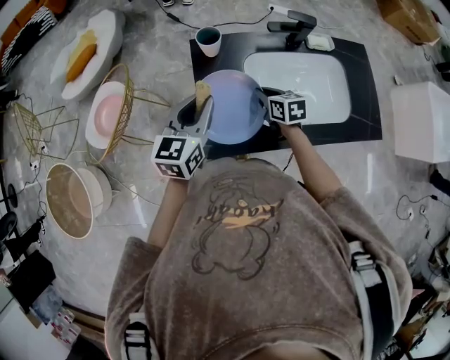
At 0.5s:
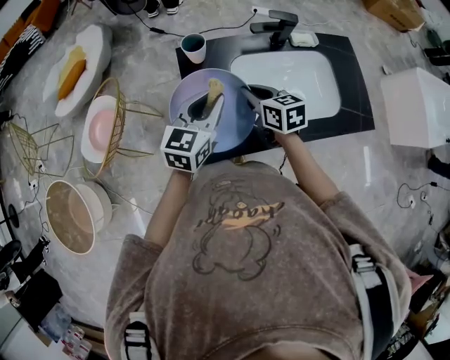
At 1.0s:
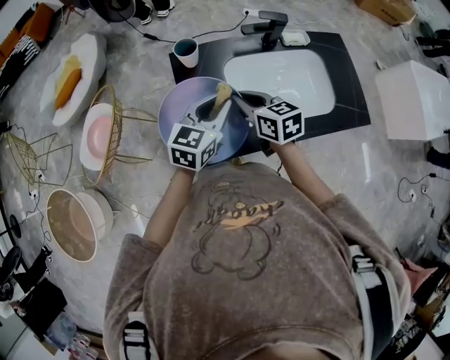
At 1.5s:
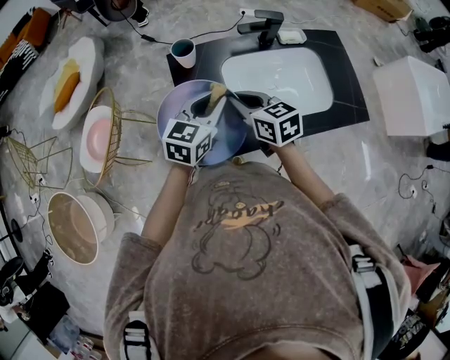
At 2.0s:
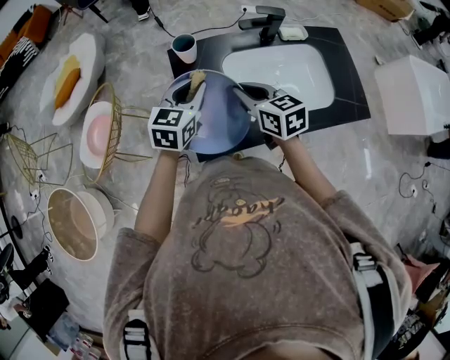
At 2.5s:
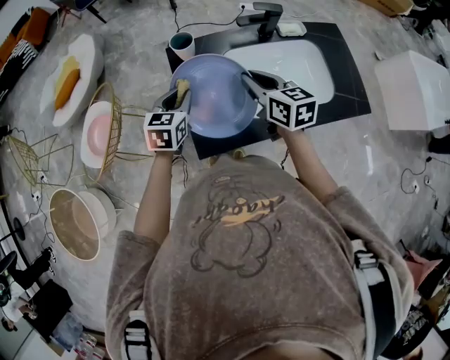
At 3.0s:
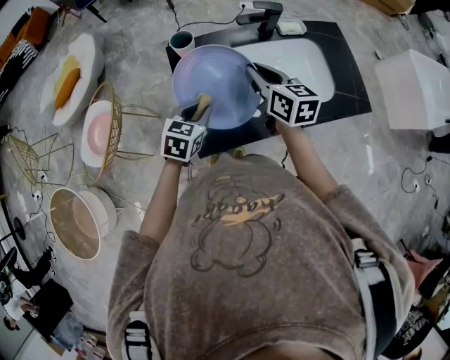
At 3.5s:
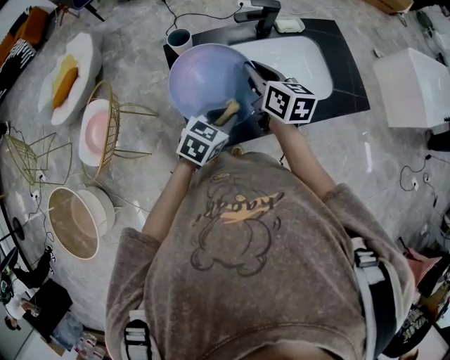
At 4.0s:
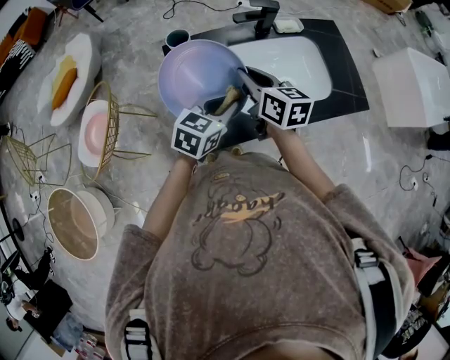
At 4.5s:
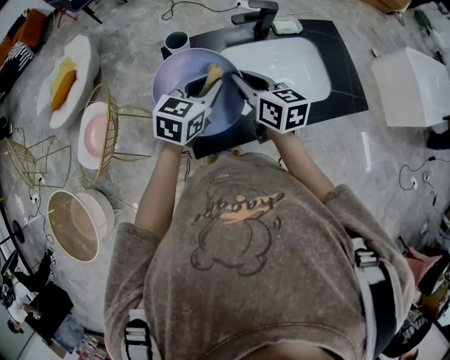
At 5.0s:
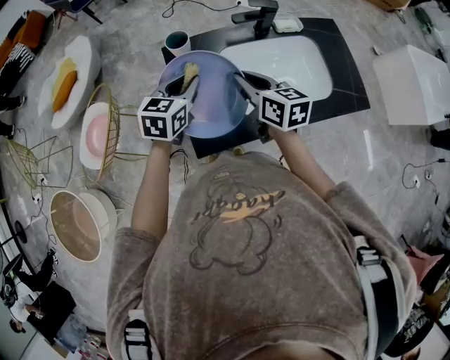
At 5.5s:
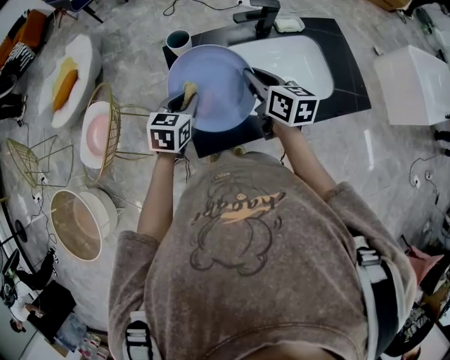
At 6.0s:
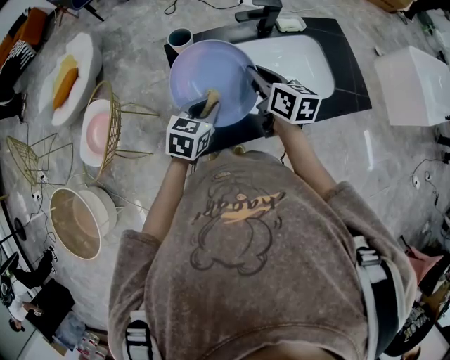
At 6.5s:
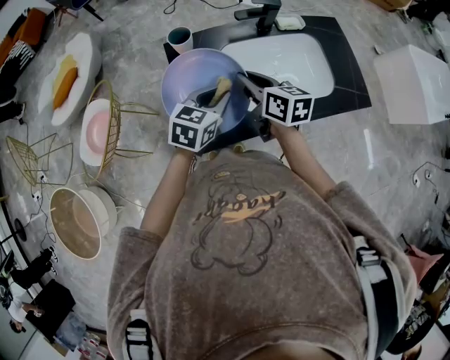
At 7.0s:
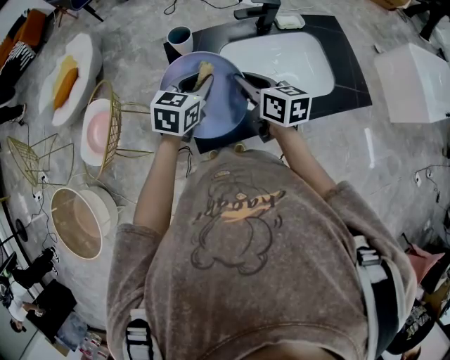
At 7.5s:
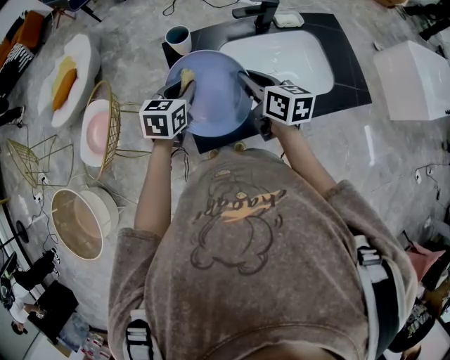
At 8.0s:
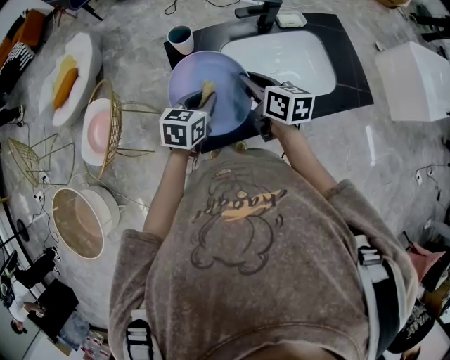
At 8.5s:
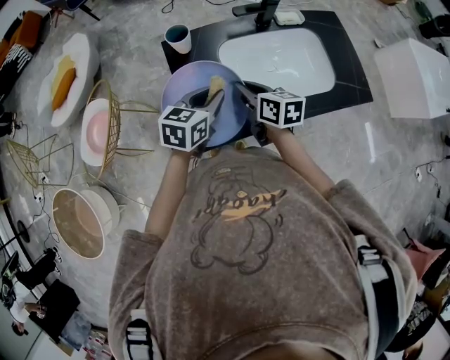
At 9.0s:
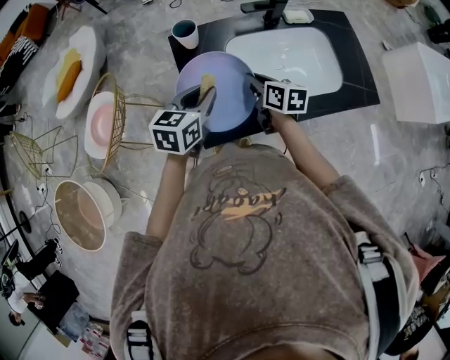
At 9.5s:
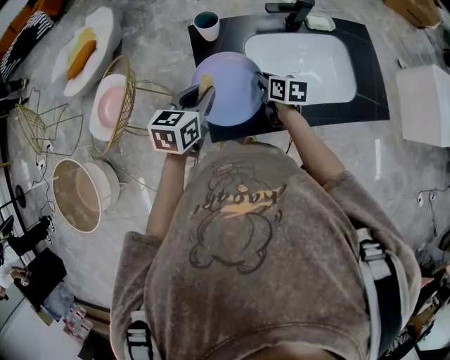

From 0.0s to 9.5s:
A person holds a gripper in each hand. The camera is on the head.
From 0.0s to 2.0s: The right gripper is displaced upward by about 15 cm.
From 2.0s to 4.0s: The left gripper goes roughly 10 cm to the right and backward, and turns by approximately 20 degrees.
From 4.0s to 5.5s: The left gripper heads to the left, covering some 10 cm.
From 5.5s to 7.5s: The left gripper travels to the right and back again, about 10 cm each way.
From 7.5s to 9.5s: The left gripper moves backward, approximately 5 cm, and moves about 5 cm to the right and comes back; the right gripper goes approximately 15 cm downward.

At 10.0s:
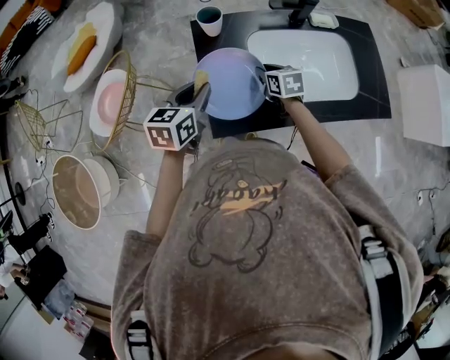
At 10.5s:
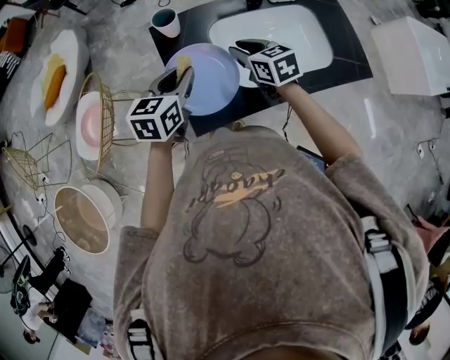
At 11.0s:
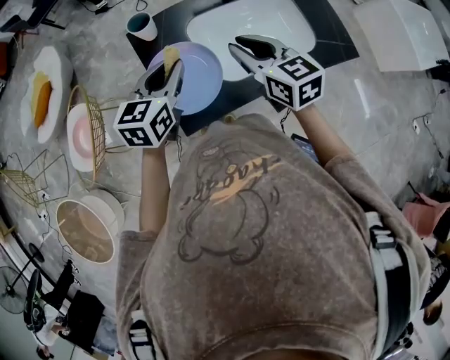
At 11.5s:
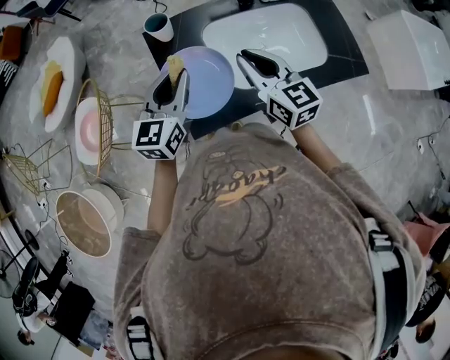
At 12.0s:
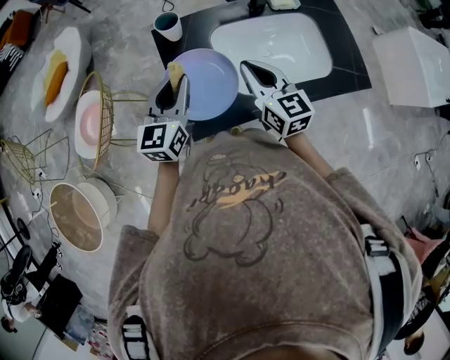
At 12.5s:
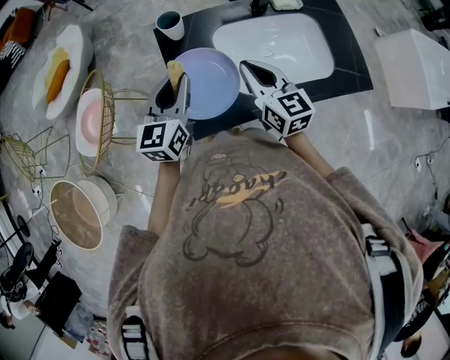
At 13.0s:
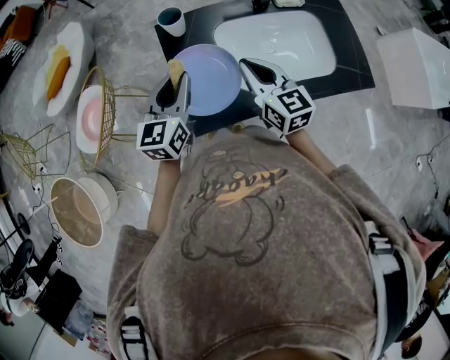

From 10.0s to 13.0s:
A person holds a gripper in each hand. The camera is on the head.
From 10.0s to 11.5s: The right gripper moves upward, about 20 cm, and tips its fingers upward by about 30 degrees. Meanwhile the left gripper moves upward and to the right, roughly 10 cm, and rotates approximately 20 degrees.
From 11.5s to 13.0s: The grippers make only small movements.

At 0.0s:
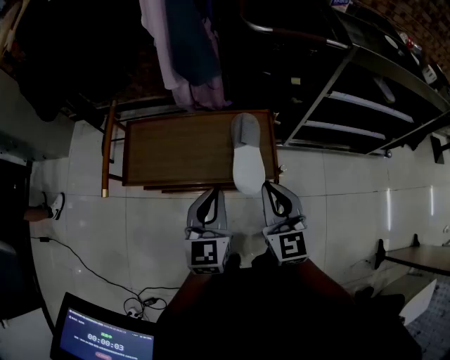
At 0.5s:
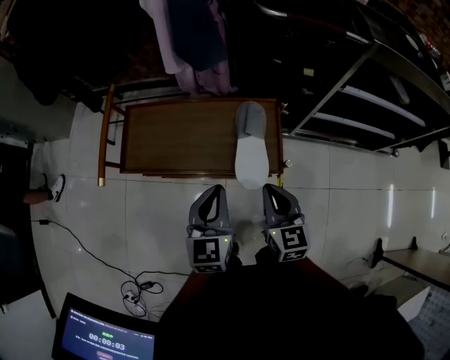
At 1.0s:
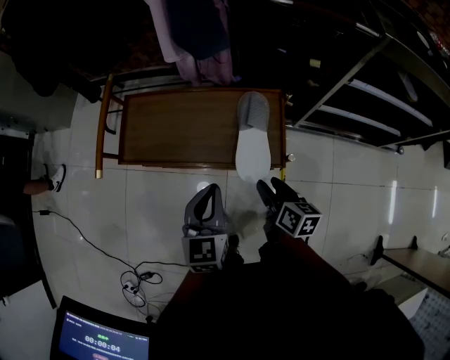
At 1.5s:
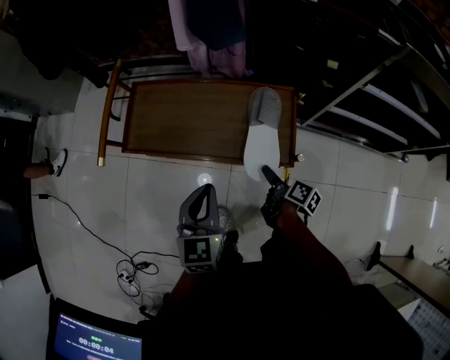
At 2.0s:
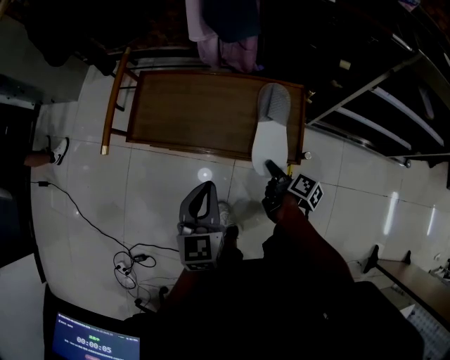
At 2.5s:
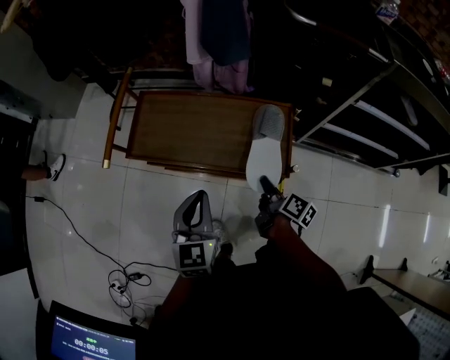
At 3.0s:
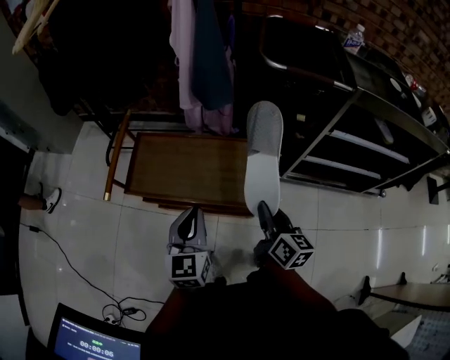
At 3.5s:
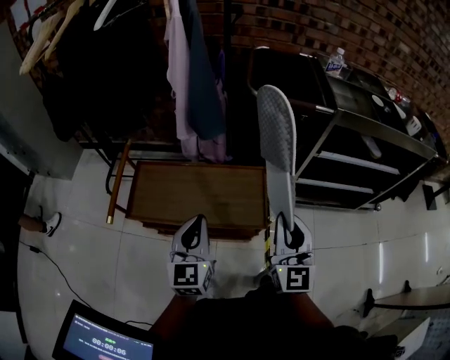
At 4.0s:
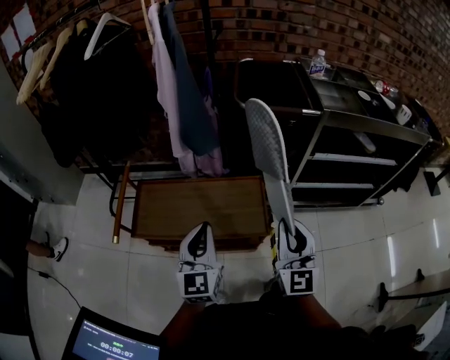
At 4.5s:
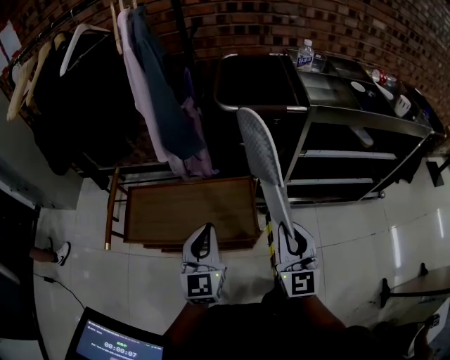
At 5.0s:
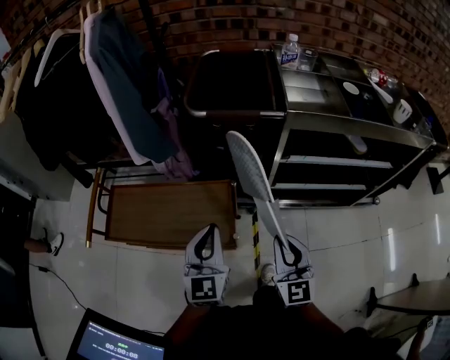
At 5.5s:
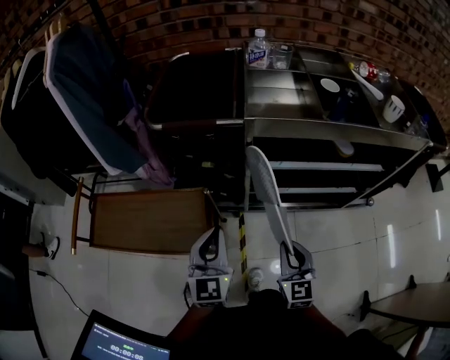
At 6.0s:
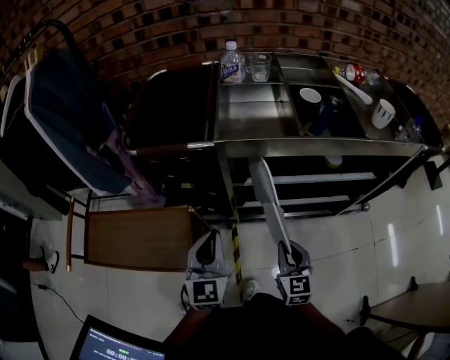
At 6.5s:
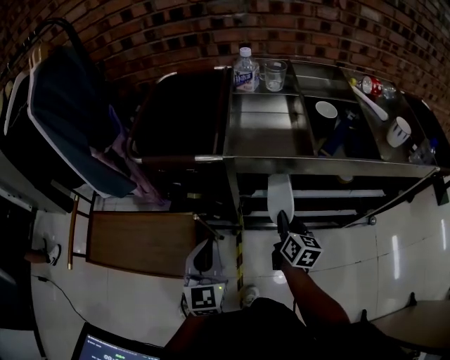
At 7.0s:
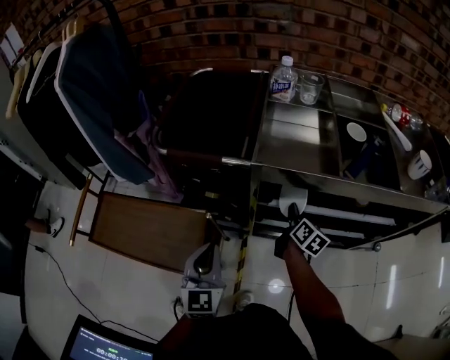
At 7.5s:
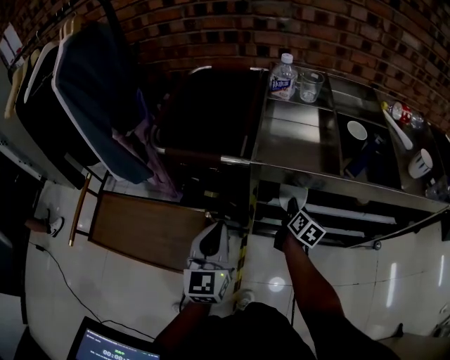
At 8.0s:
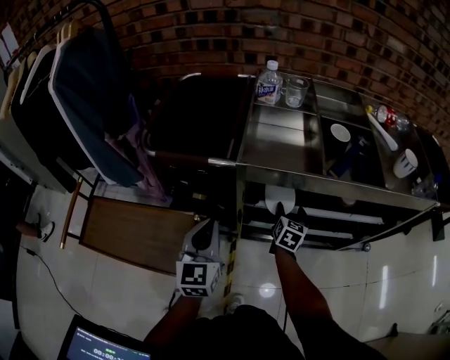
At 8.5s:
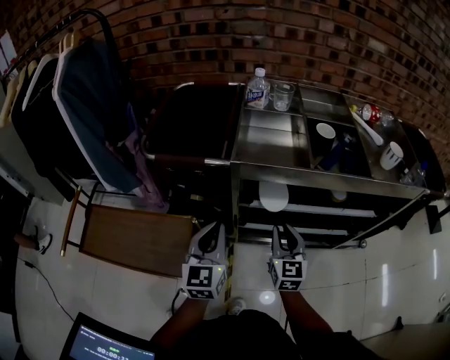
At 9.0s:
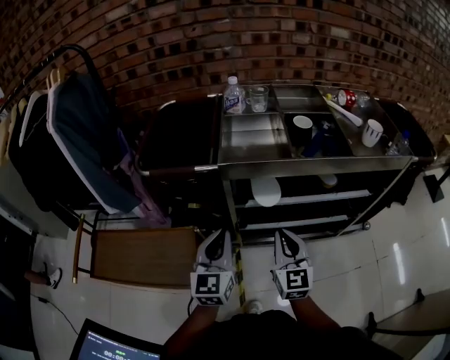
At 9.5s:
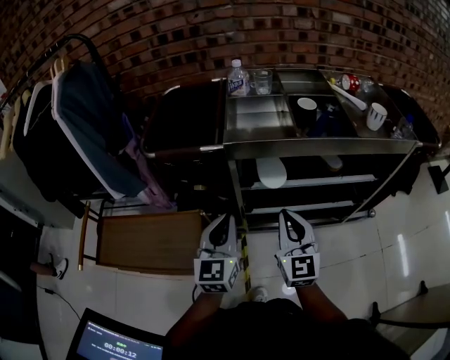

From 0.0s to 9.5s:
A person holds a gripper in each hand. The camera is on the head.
From 0.0s to 2.0s: The right gripper shifts about 25 cm downward, rolls clockwise, seen from behind, by about 80 degrees, and opens its fingers, while the left gripper shifts roughly 10 cm downward and to the left.
From 2.0s to 4.0s: The left gripper heads upward, covering roughly 15 cm, and turns by about 20 degrees, while the right gripper travels upward by approximately 35 cm, rolls counterclockwise, seen from behind, by some 80 degrees, and closes up.
From 4.0s to 5.5s: The right gripper goes approximately 35 cm to the right and downward, and turns by about 20 degrees; the left gripper heads to the right, covering about 30 cm.
From 5.5s to 7.5s: The right gripper heads forward, covering roughly 30 cm, and twists some 40 degrees clockwise, seen from behind. Meanwhile the left gripper goes about 10 cm forward.
From 7.5s to 9.5s: The right gripper goes about 30 cm upward and backward, twists approximately 40 degrees counterclockwise, seen from behind, and opens, then closes once more. Meanwhile the left gripper heads backward and to the right, covering approximately 10 cm.

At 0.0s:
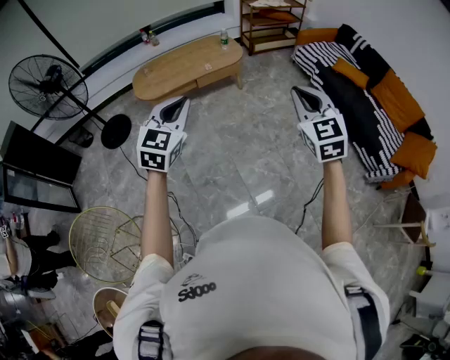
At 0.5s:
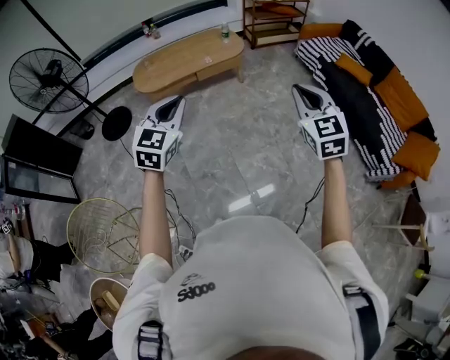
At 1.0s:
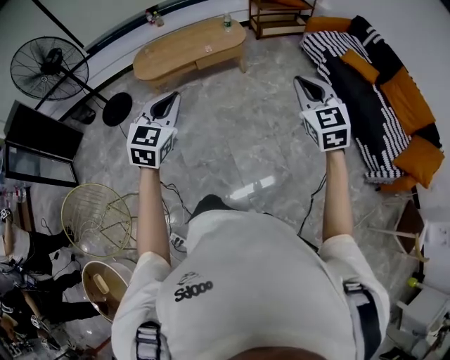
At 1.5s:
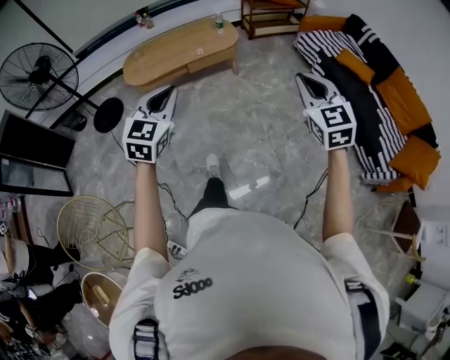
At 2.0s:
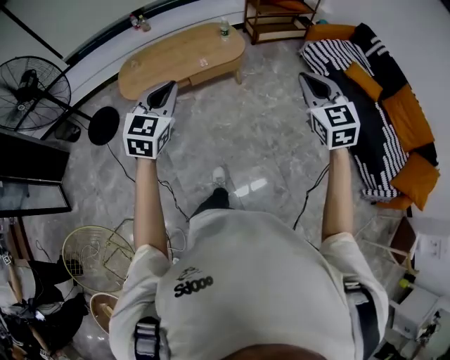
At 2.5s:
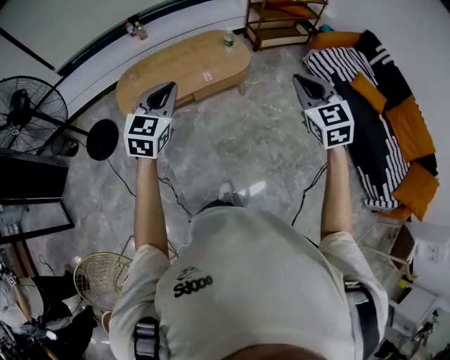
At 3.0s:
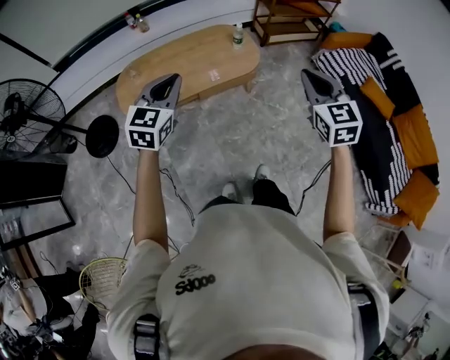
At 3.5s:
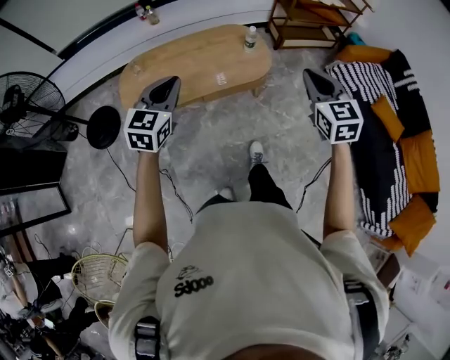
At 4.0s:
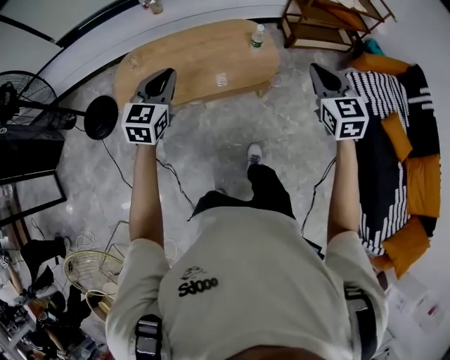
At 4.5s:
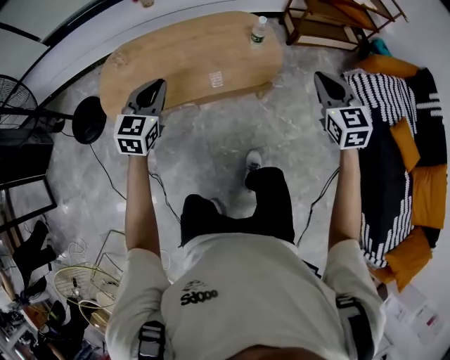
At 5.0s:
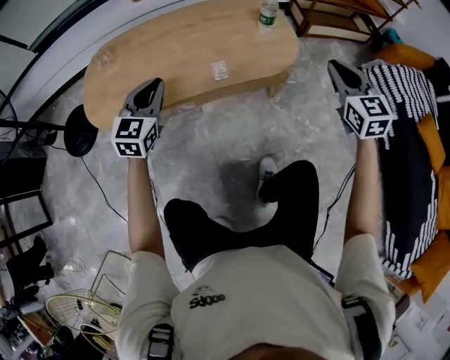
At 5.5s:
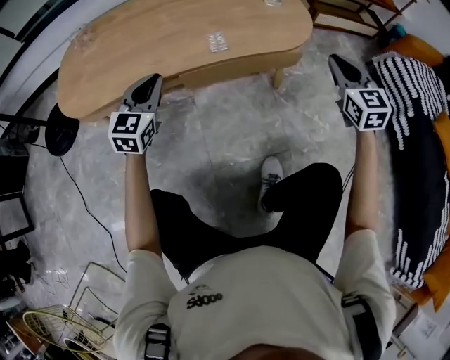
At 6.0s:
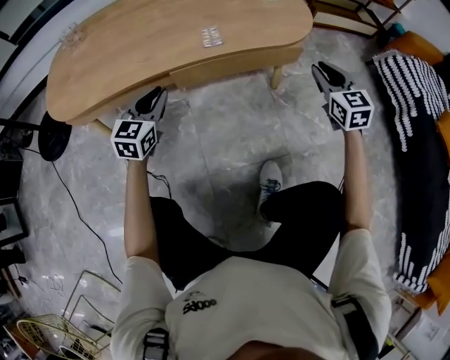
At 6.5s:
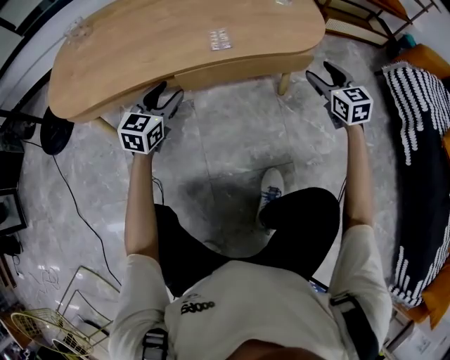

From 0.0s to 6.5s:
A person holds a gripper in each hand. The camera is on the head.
From 0.0s to 2.0s: Both grippers travel together forward, some 30 cm.
From 2.0s to 4.5s: The two grippers travel together, forward, about 50 cm. The two grippers go approximately 25 cm downward.
From 4.5s to 6.5s: Both grippers move downward, roughly 50 cm. The left gripper opens. Meanwhile the right gripper opens.
